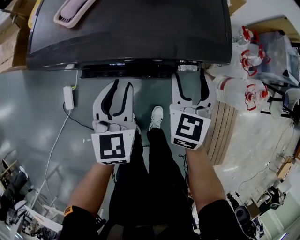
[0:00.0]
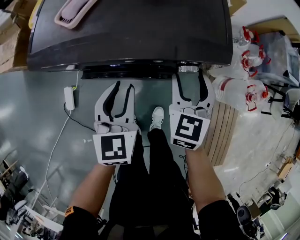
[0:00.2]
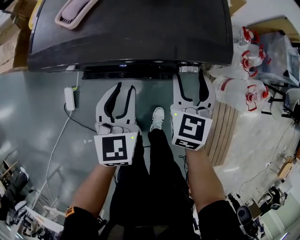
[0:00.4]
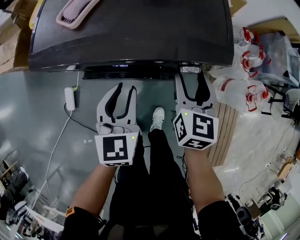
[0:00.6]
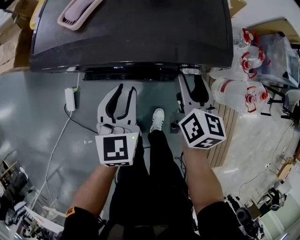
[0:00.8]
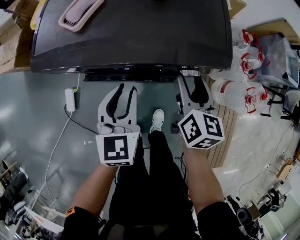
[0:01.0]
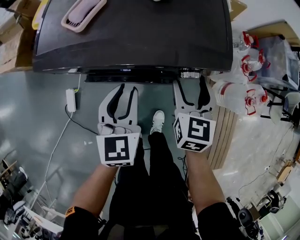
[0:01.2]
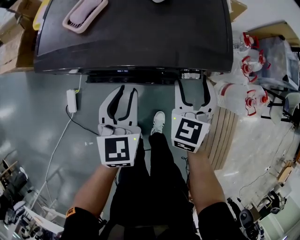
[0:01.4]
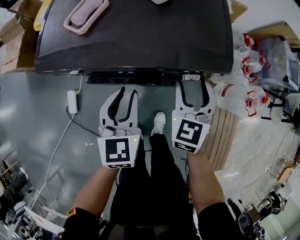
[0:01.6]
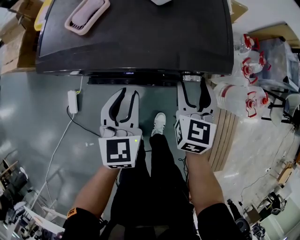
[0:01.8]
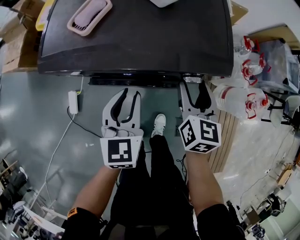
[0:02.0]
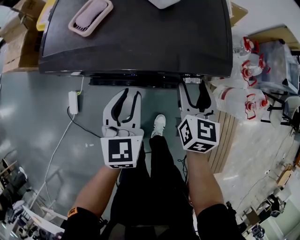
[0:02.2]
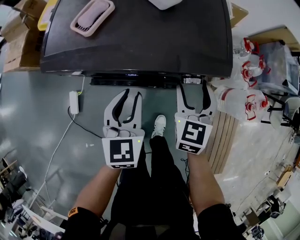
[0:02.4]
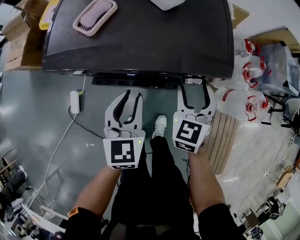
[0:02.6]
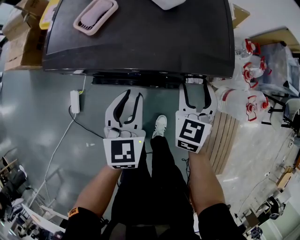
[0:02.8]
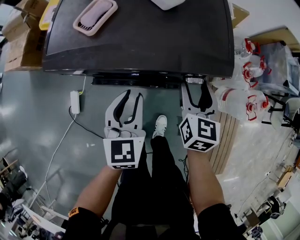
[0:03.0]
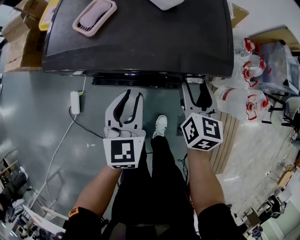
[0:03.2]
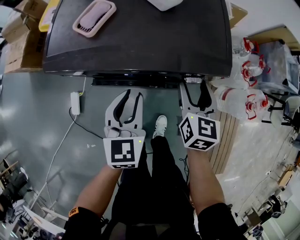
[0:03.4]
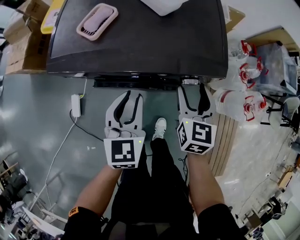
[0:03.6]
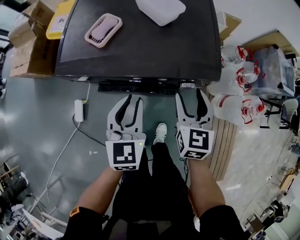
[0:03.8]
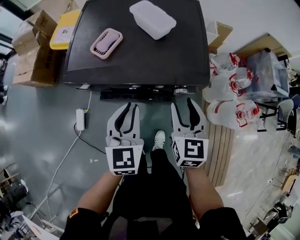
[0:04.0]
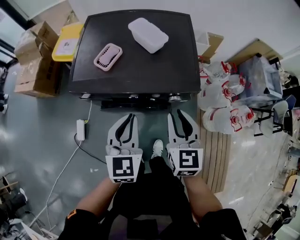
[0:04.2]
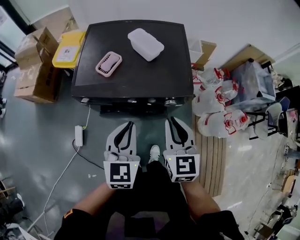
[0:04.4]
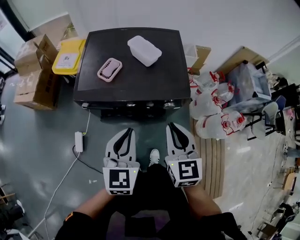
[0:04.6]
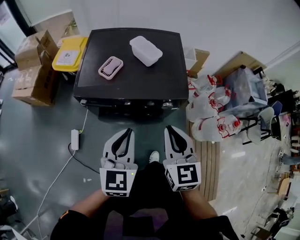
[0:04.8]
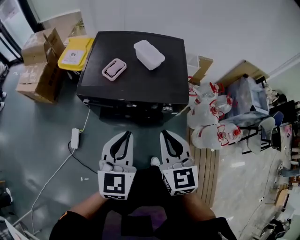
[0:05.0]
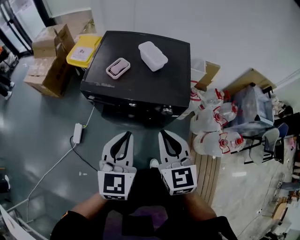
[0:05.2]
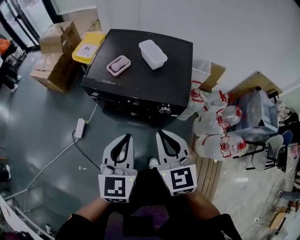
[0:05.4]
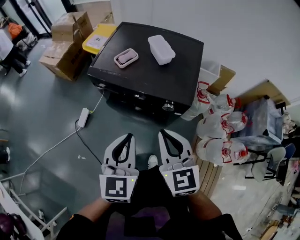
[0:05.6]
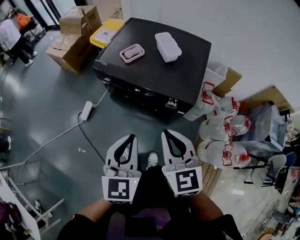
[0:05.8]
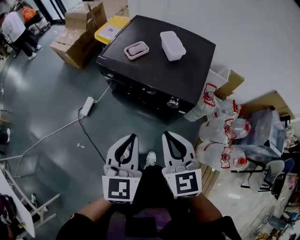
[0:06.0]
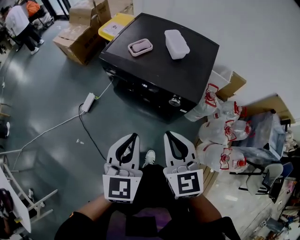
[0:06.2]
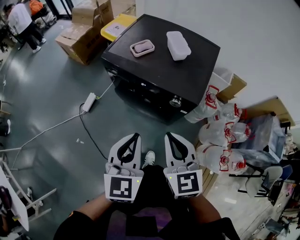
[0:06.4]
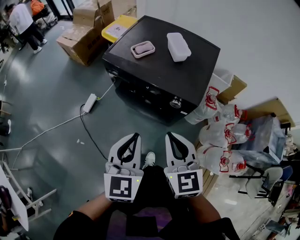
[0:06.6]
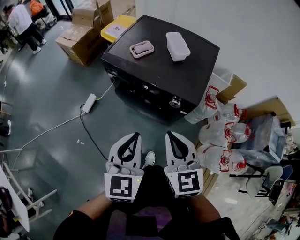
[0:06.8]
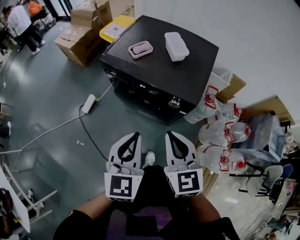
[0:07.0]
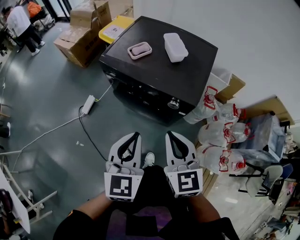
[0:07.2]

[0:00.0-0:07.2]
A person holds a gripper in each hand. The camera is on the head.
0:02.8 to 0:04.4: The left gripper travels upward by roughly 20 cm, and closes up, while the right gripper is displaced upward and backward by about 20 cm, and closes.
0:04.4 to 0:05.8: The left gripper shifts by some 15 cm, and turns by about 20 degrees; the right gripper moves approximately 10 cm, and rotates approximately 30 degrees.
0:05.8 to 0:07.2: There are only small adjustments of the grippers.

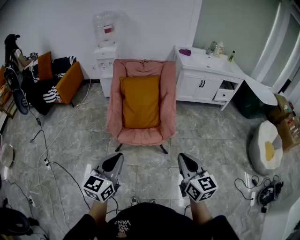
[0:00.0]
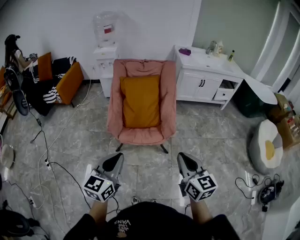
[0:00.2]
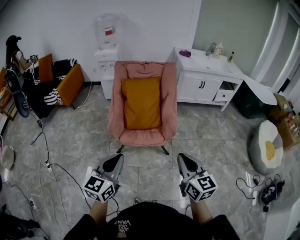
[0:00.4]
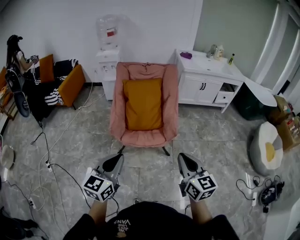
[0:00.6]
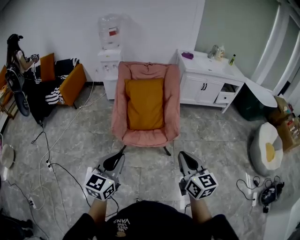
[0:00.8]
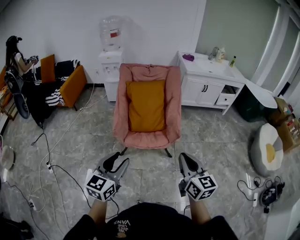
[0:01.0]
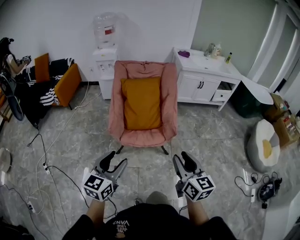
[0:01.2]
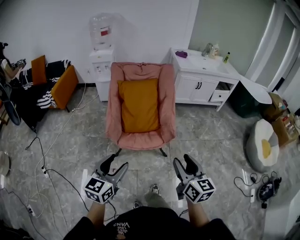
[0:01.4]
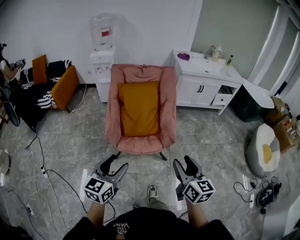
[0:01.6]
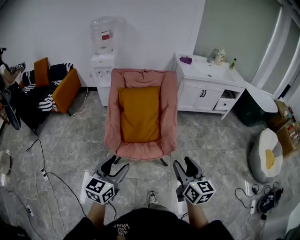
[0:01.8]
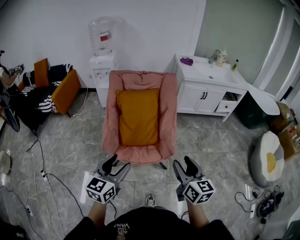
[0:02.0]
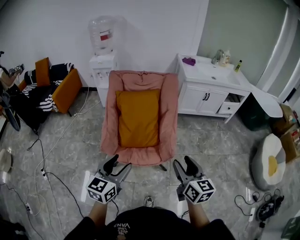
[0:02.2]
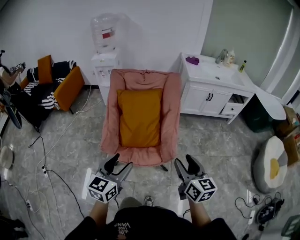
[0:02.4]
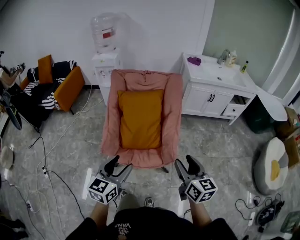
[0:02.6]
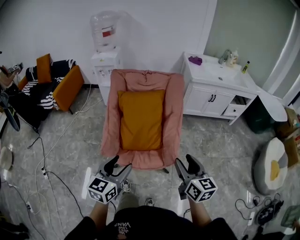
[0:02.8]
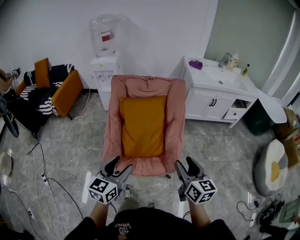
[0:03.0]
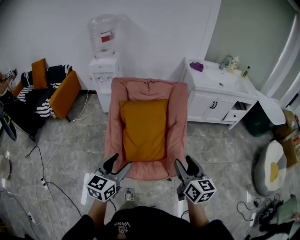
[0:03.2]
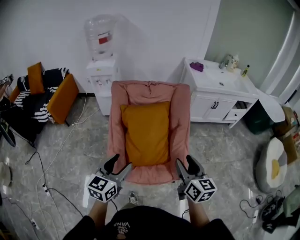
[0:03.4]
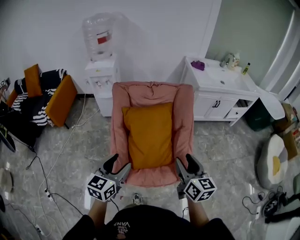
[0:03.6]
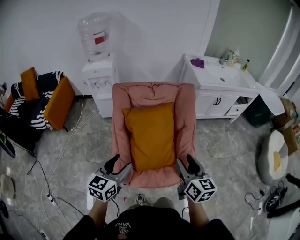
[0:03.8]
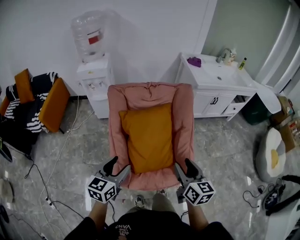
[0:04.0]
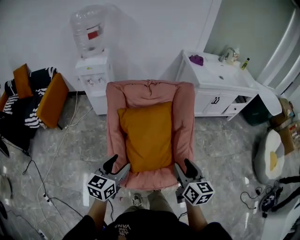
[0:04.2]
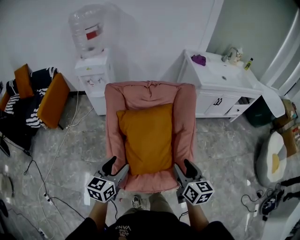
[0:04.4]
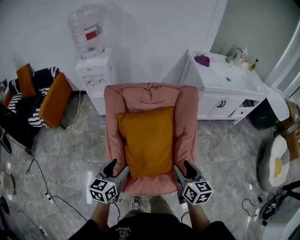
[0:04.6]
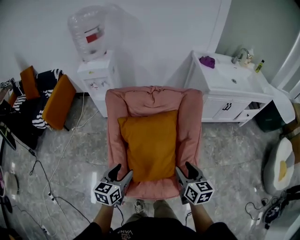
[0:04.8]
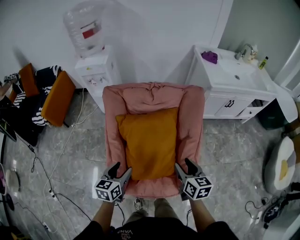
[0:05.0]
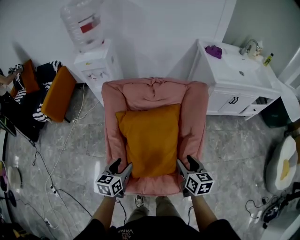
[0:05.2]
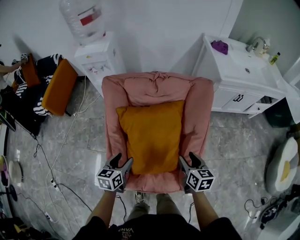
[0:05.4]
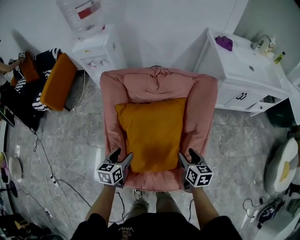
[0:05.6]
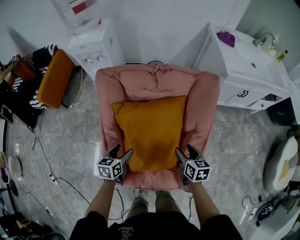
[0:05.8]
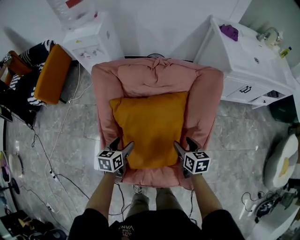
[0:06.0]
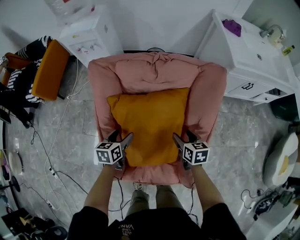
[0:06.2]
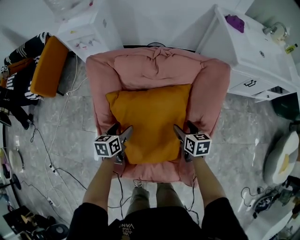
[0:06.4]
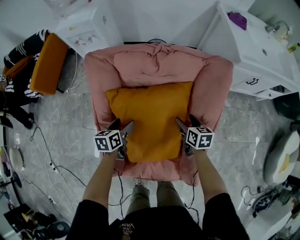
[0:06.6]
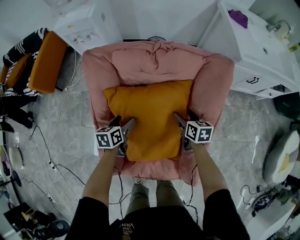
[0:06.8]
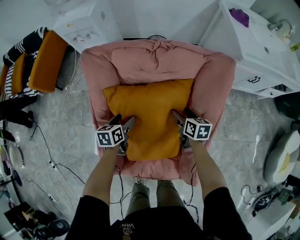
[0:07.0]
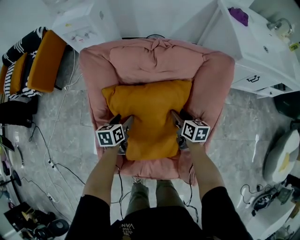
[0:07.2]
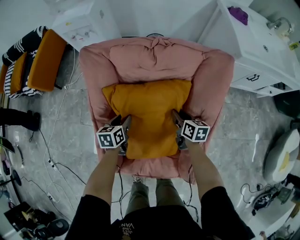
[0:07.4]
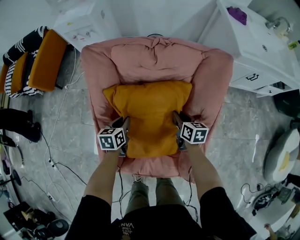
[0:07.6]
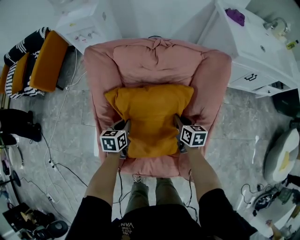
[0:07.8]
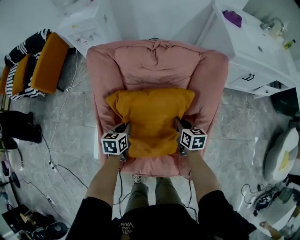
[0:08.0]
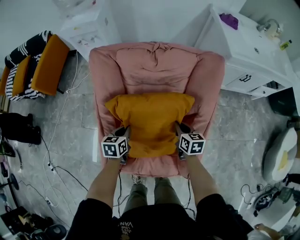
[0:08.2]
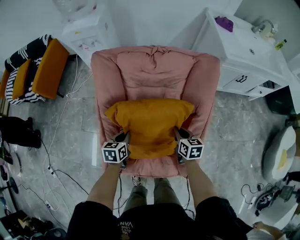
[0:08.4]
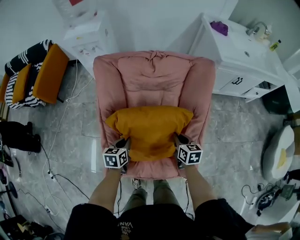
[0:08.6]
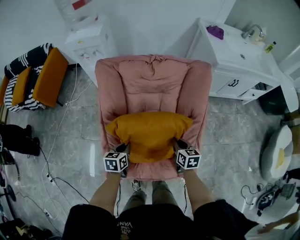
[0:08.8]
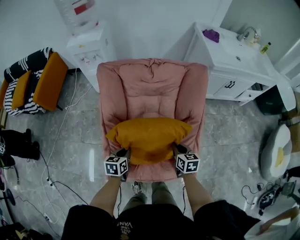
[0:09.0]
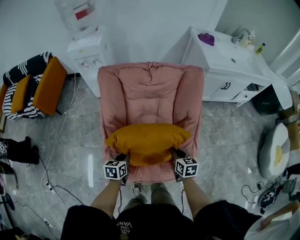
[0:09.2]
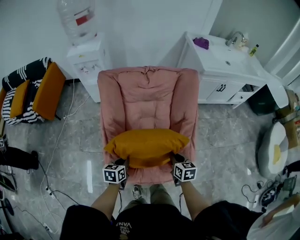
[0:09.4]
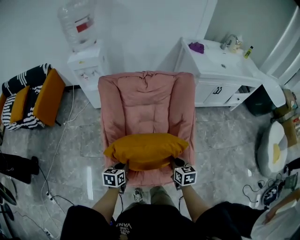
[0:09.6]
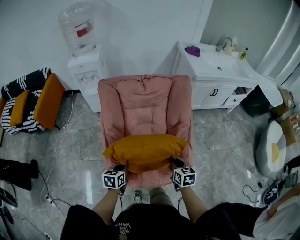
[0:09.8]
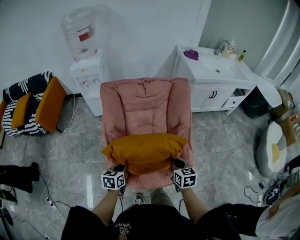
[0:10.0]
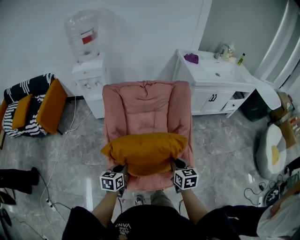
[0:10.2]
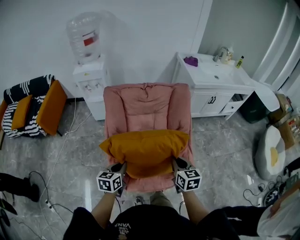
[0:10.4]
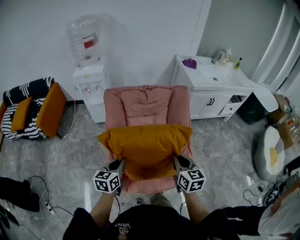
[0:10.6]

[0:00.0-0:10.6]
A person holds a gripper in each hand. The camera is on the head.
0:00.0 to 0:01.6: Both grippers travel together forward, about 5 cm. The right gripper opens, while the left gripper opens its fingers.
0:01.6 to 0:03.0: The two grippers go about 25 cm forward.
0:03.0 to 0:04.6: Both grippers move forward and to the left, approximately 25 cm.
0:04.6 to 0:06.0: Both grippers move downward and forward, roughly 25 cm. The right gripper rotates some 20 degrees; the left gripper changes its angle by about 20 degrees.
0:06.0 to 0:07.6: The right gripper moves forward and downward, some 10 cm, and closes. Meanwhile the left gripper heads downward, covering about 5 cm, and closes.
0:07.6 to 0:09.0: The right gripper goes some 20 cm backward and upward. The left gripper heads backward, covering roughly 15 cm.
0:09.0 to 0:10.6: The right gripper travels upward and backward by some 25 cm, and changes its angle by some 20 degrees. The left gripper is displaced upward by approximately 20 cm, and changes its angle by approximately 20 degrees.

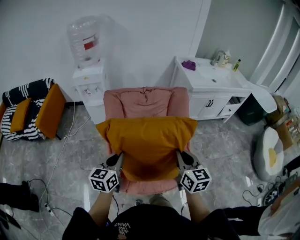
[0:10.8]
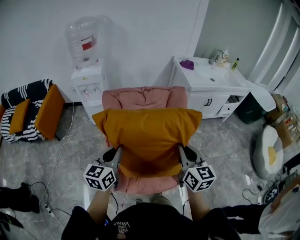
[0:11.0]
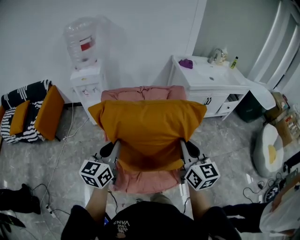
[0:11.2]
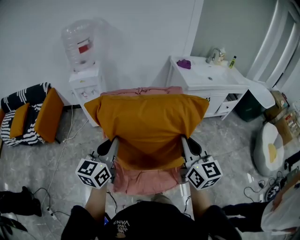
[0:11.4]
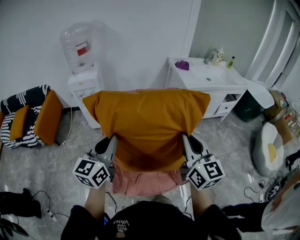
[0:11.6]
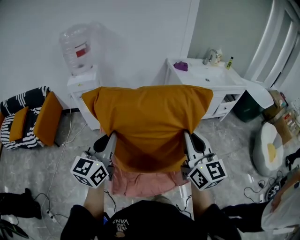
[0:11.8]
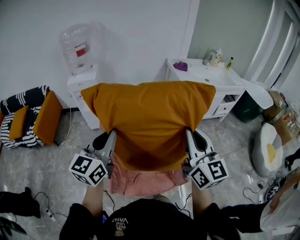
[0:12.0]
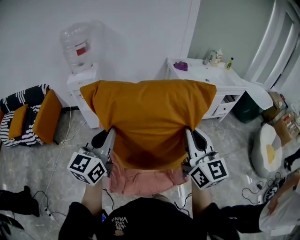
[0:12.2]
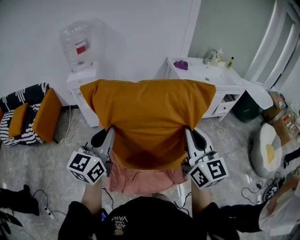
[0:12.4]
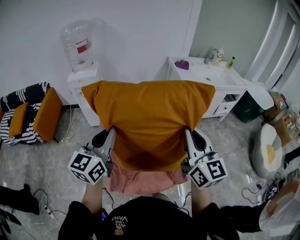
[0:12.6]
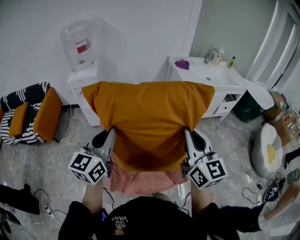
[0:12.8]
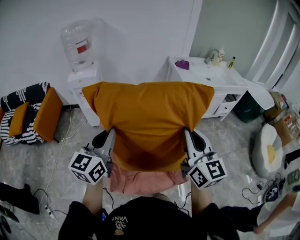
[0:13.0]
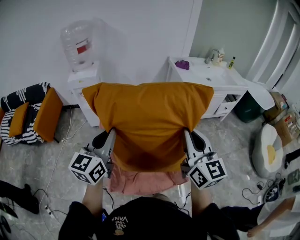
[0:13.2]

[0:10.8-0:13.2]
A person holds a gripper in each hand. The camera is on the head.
0:10.8 to 0:12.0: The two grippers go some 20 cm upward. The left gripper swivels some 20 degrees; the right gripper swivels about 20 degrees.
0:12.0 to 0:13.2: The grippers make only small movements.

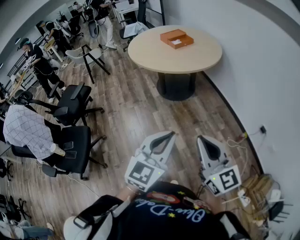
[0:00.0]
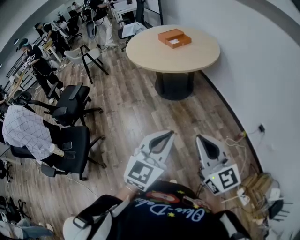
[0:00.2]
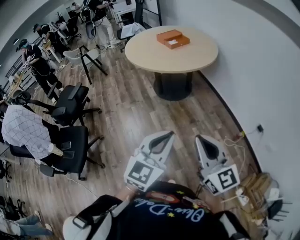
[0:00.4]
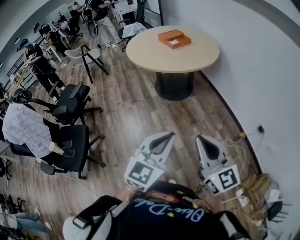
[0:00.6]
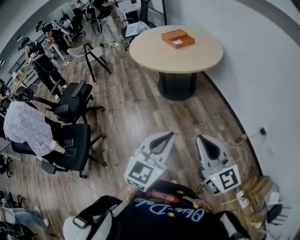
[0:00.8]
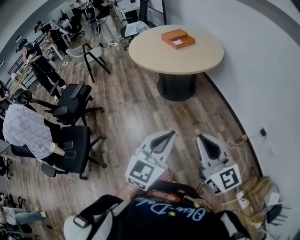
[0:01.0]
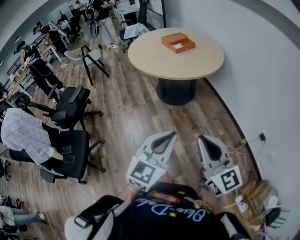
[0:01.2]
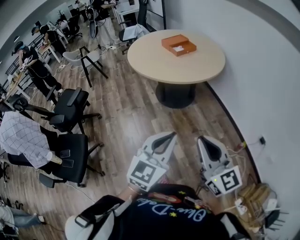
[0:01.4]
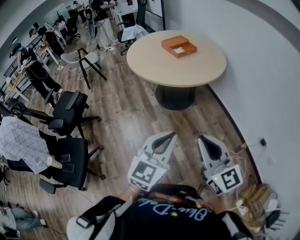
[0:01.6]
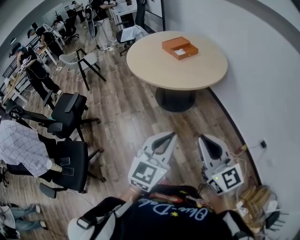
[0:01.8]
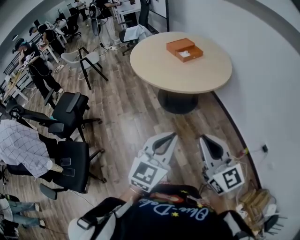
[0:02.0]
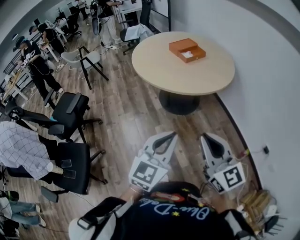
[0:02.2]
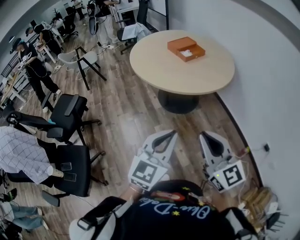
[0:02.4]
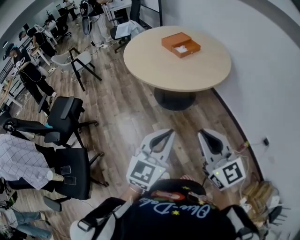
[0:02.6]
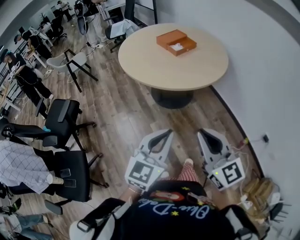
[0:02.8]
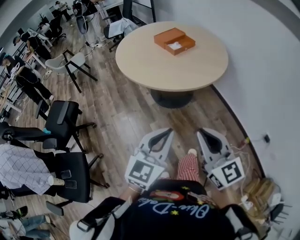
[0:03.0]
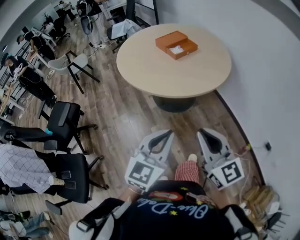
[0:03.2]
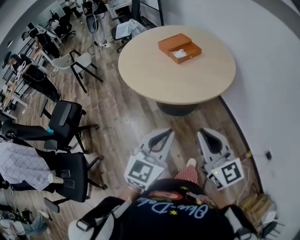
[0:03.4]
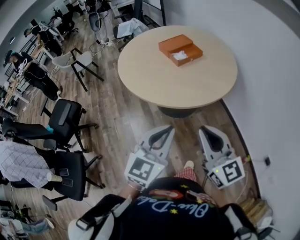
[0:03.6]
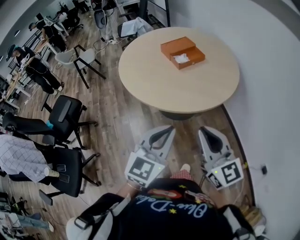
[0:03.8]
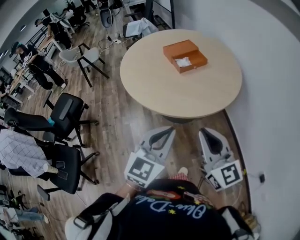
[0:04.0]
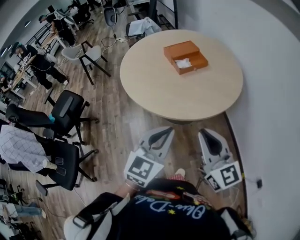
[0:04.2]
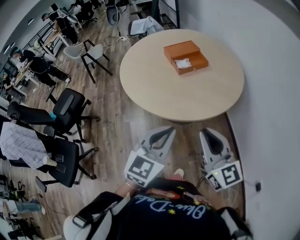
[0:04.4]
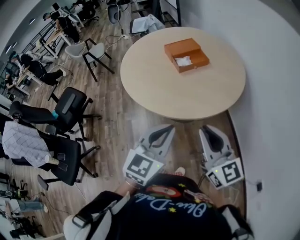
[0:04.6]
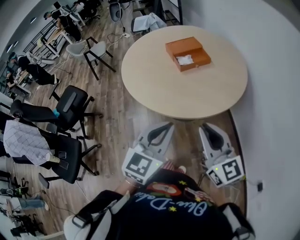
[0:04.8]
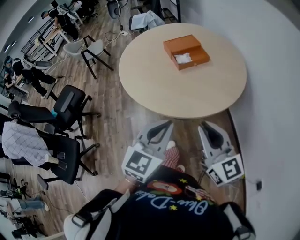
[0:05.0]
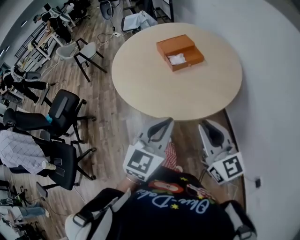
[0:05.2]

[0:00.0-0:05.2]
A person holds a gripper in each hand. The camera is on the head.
0:00.0 to 0:01.8: Both grippers travel together forward, about 15 cm.
0:01.8 to 0:03.4: Both grippers move forward, roughly 20 cm.
0:03.4 to 0:05.2: The two grippers go some 20 cm forward and to the right.
